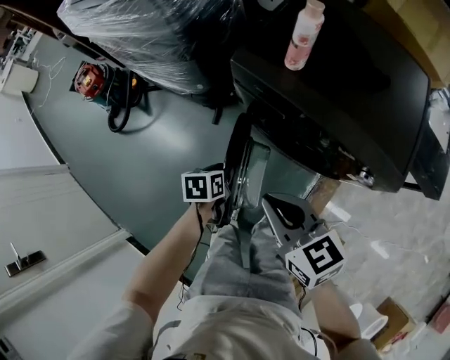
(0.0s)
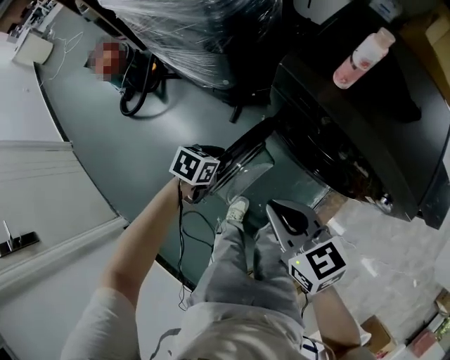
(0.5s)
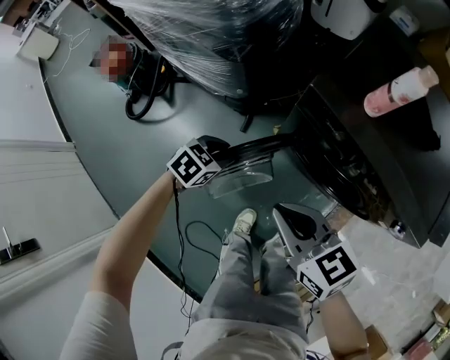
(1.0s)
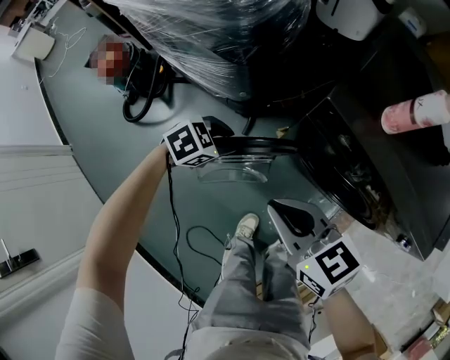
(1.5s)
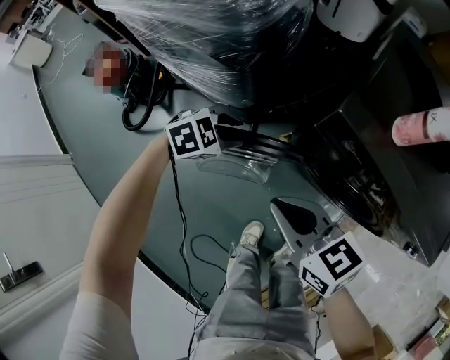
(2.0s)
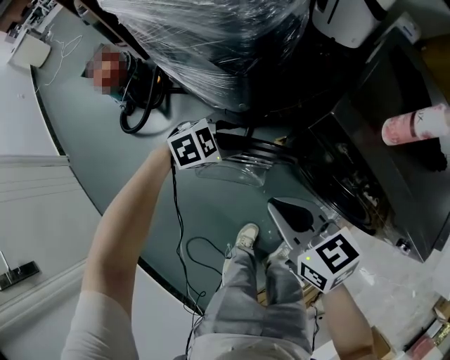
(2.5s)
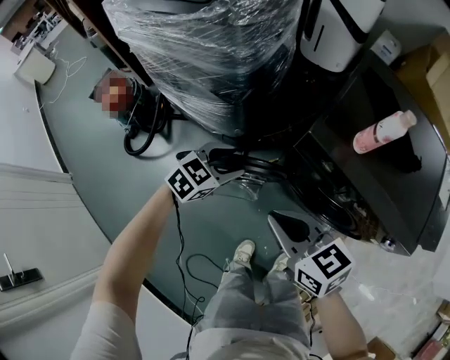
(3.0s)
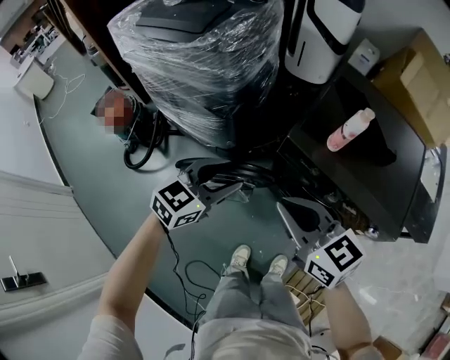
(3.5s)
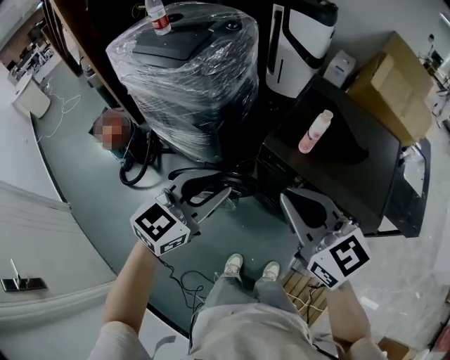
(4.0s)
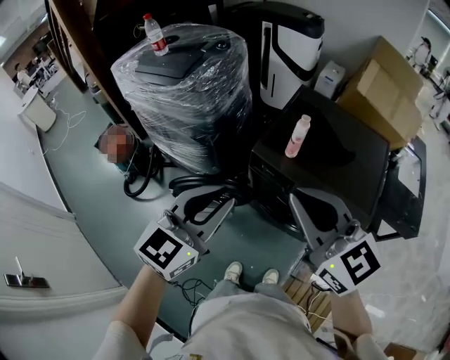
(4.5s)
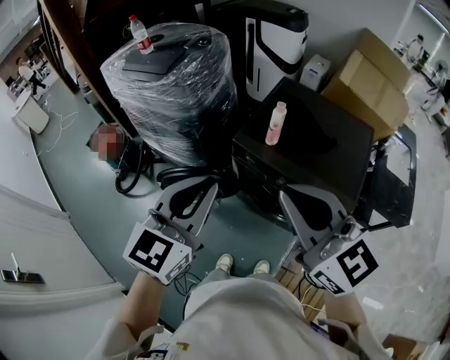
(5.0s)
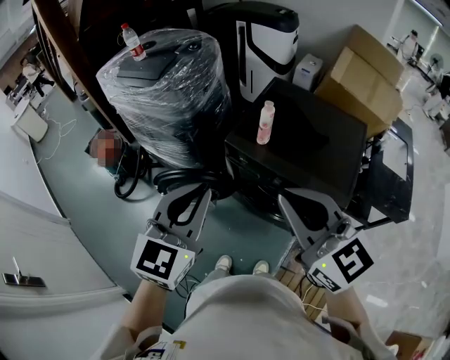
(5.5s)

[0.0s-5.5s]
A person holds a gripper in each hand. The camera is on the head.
0.0s to 2.0s: The left gripper moves some 25 cm, and rolls clockwise, seen from behind, by about 70 degrees, while the right gripper ends up approximately 25 cm from where it was.
2.0s to 3.5s: The two grippers go roughly 25 cm upward. The left gripper points its fingers some 30 degrees further upward.
3.5s to 5.5s: The right gripper travels upward, to the right and backward by approximately 30 cm, and rotates some 20 degrees; the left gripper goes about 35 cm upward, backward and to the right, turns by about 30 degrees, and closes up.

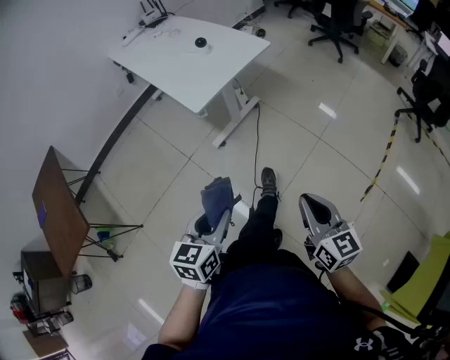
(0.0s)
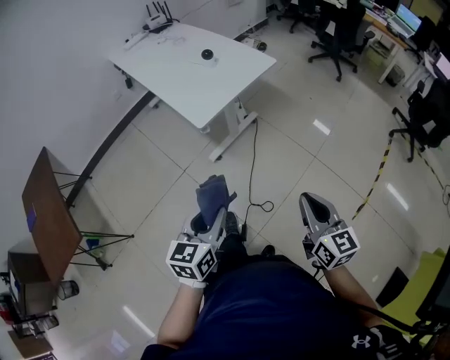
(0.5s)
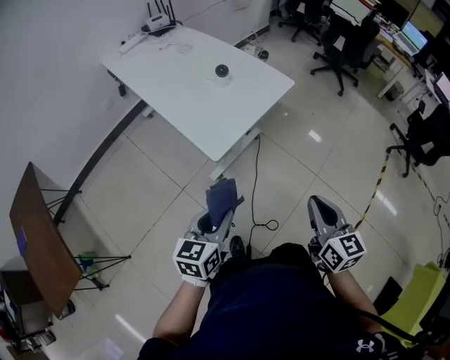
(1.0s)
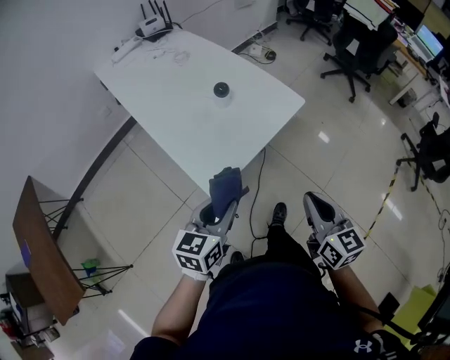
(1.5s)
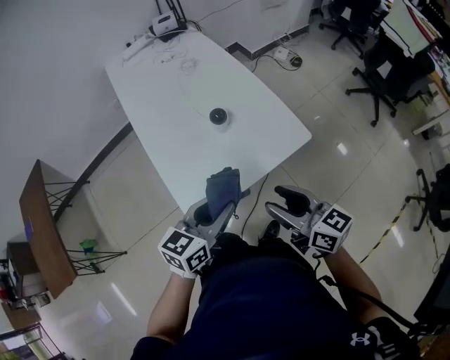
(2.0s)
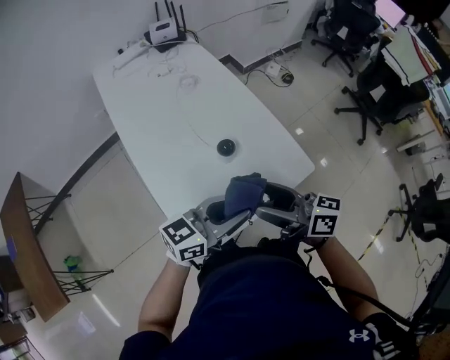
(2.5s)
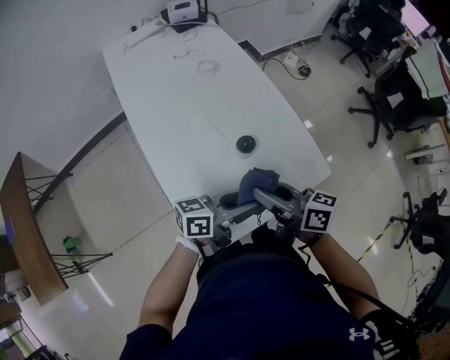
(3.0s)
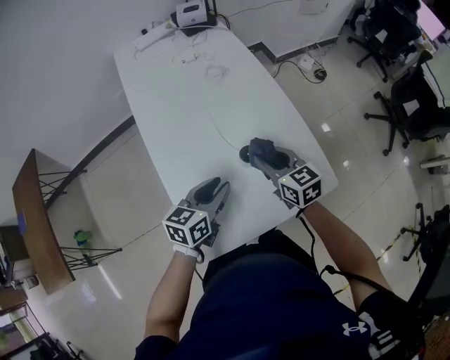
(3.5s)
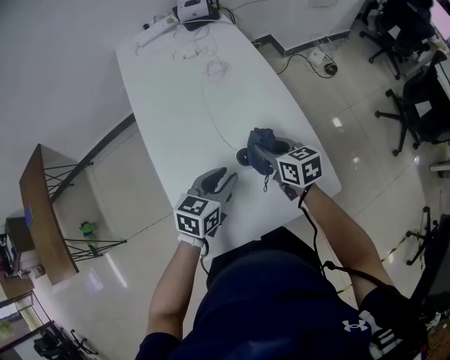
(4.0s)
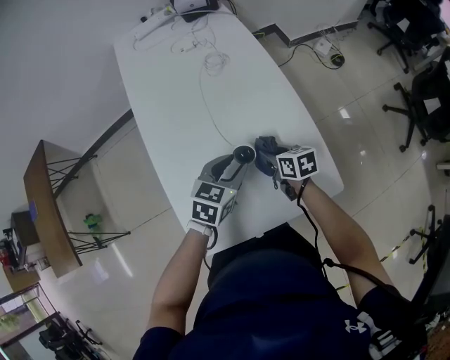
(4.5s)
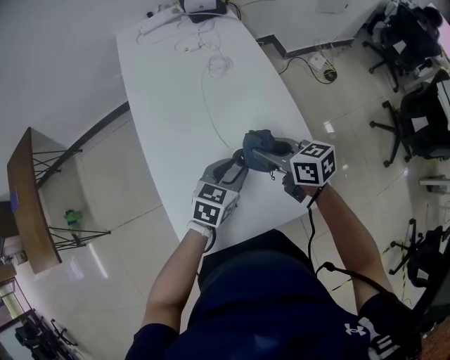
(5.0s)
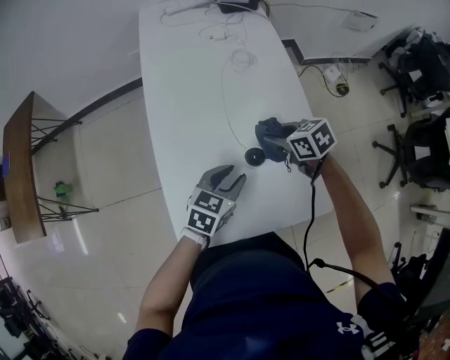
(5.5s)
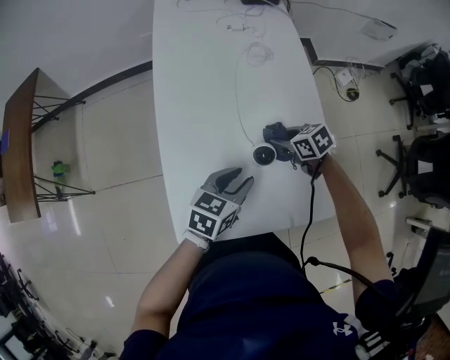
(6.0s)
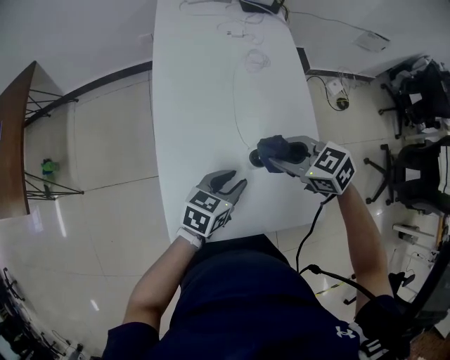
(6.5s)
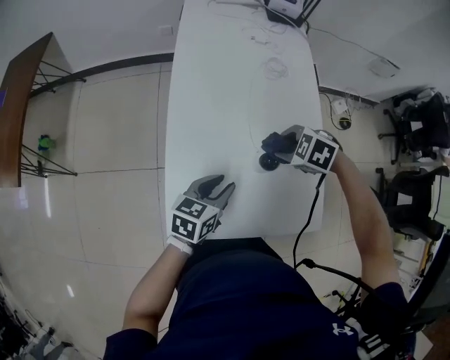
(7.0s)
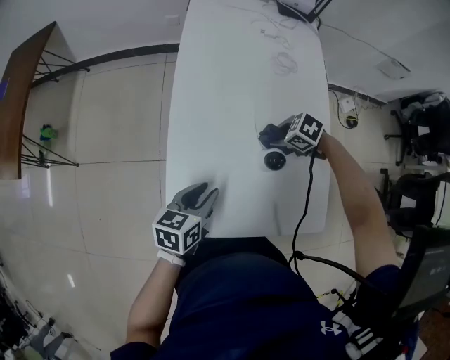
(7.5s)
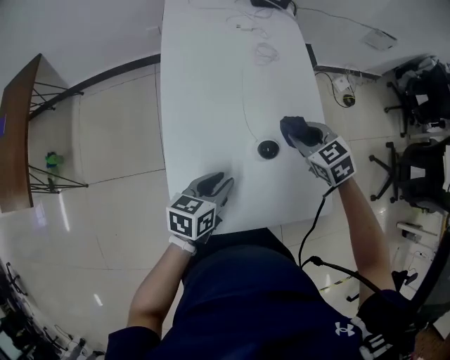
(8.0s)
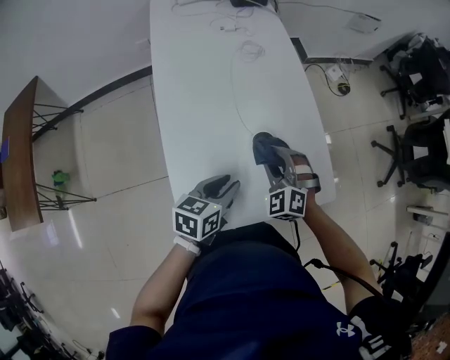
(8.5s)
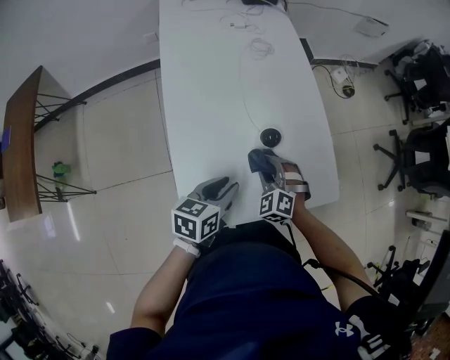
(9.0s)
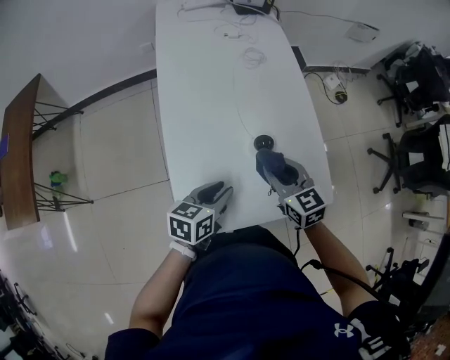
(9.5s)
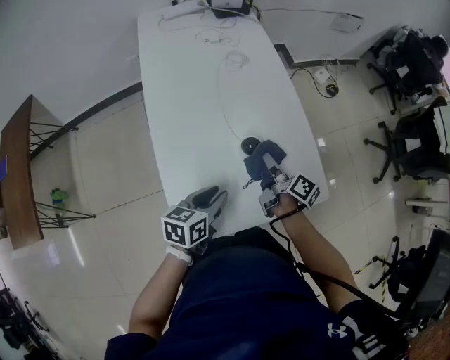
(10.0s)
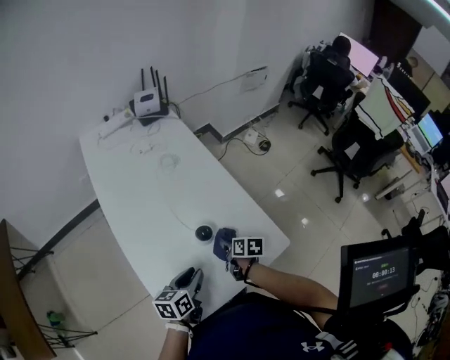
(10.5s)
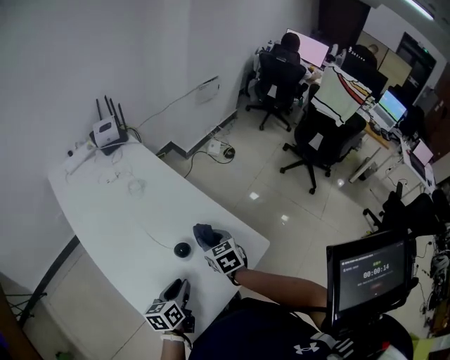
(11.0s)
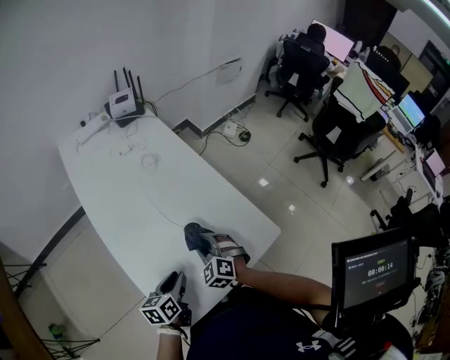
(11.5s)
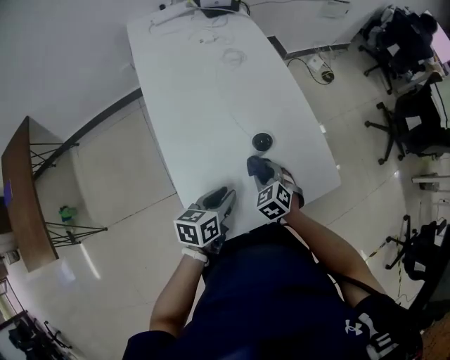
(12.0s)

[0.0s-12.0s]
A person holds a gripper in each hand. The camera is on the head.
0.0s to 2.0s: The two grippers travel together, forward, roughly 50 cm. The right gripper swivels approximately 40 degrees, and opens.
2.0s to 4.0s: The two grippers go about 30 cm forward and downward. The right gripper changes its angle by about 20 degrees, and opens, then closes again.
4.0s to 6.0s: The right gripper swings up and down, roughly 15 cm each way, with 2 reversals, and turns by some 40 degrees.
6.0s to 8.0s: The right gripper goes up and down, about 15 cm each way, reversing 2 times, and changes its angle by roughly 30 degrees.
8.0s to 10.0s: The right gripper moves backward and downward, about 10 cm, and twists approximately 80 degrees clockwise, seen from behind.
10.0s to 12.0s: The right gripper swings up and down, about 15 cm each way, with 2 reversals, and rotates around the line of its fingers by about 90 degrees, counterclockwise from behind.

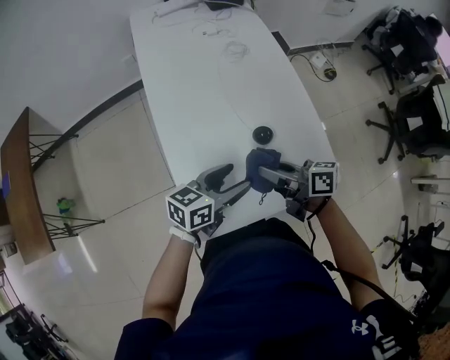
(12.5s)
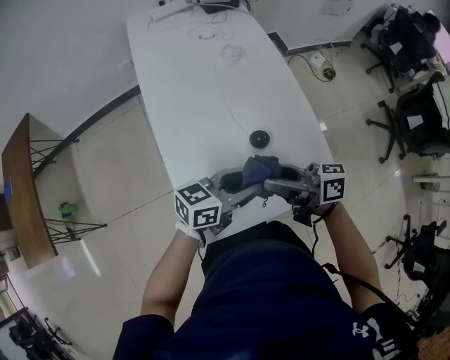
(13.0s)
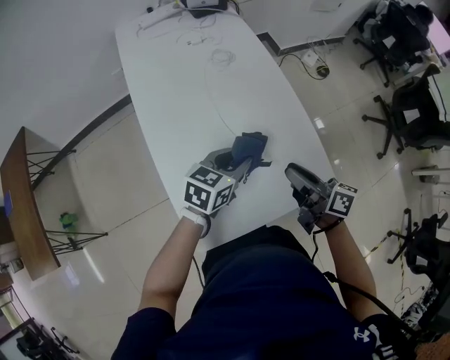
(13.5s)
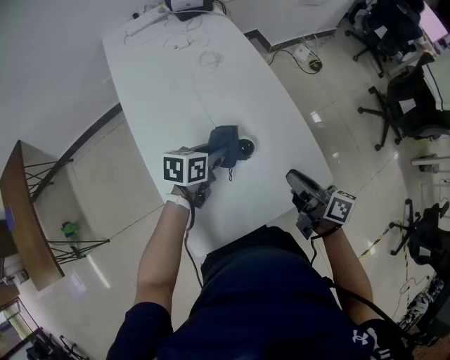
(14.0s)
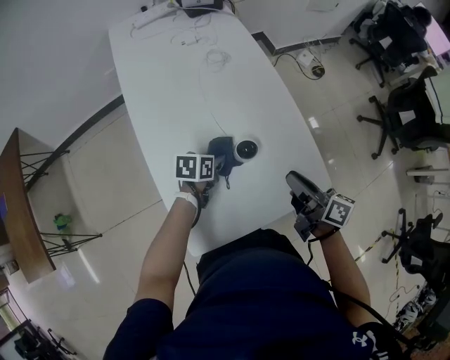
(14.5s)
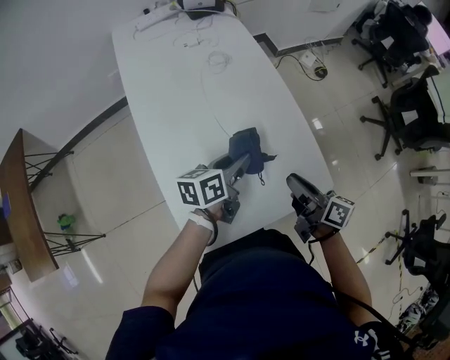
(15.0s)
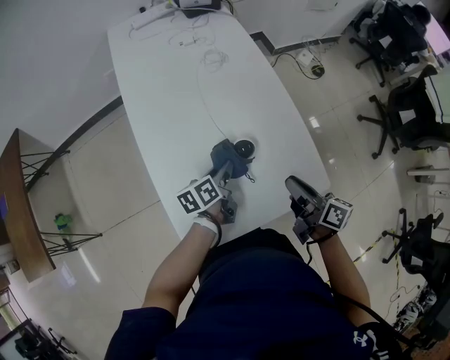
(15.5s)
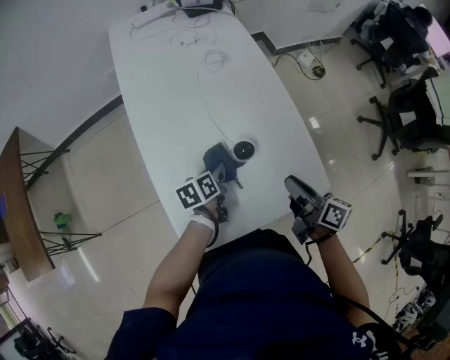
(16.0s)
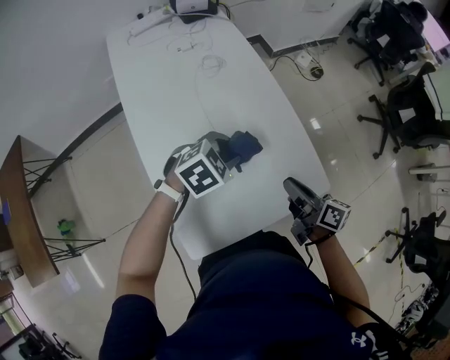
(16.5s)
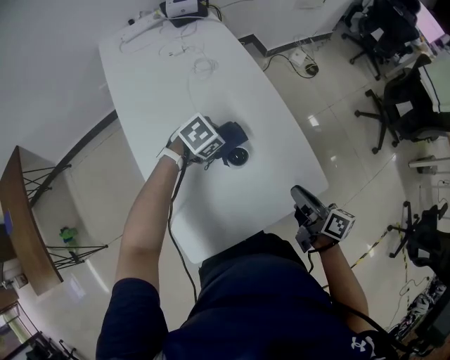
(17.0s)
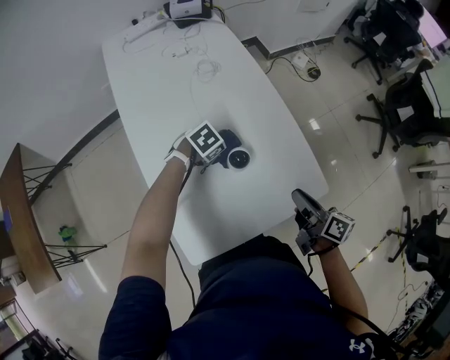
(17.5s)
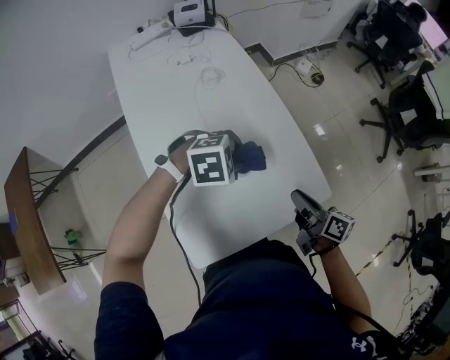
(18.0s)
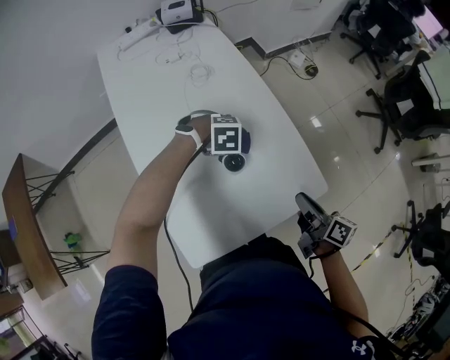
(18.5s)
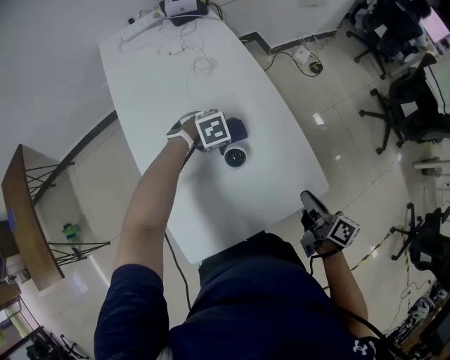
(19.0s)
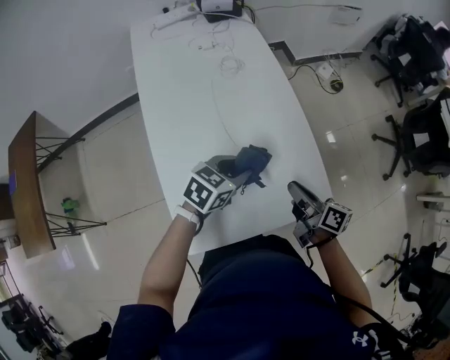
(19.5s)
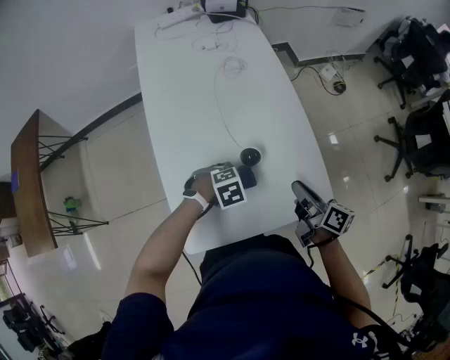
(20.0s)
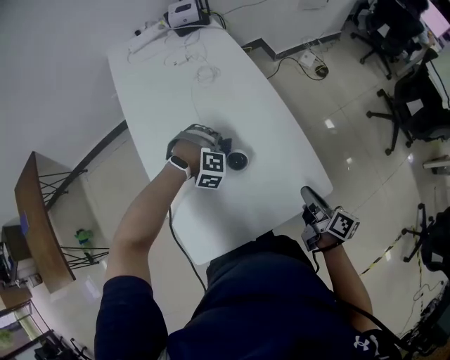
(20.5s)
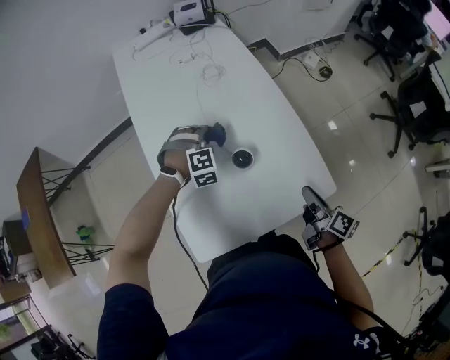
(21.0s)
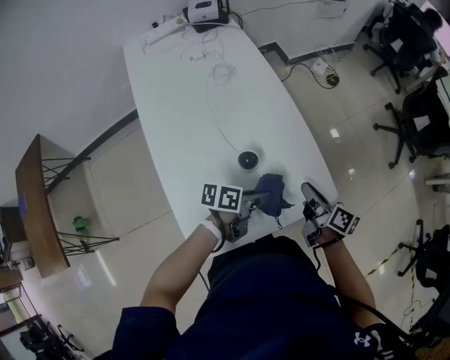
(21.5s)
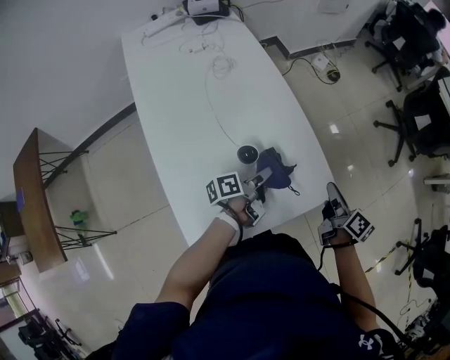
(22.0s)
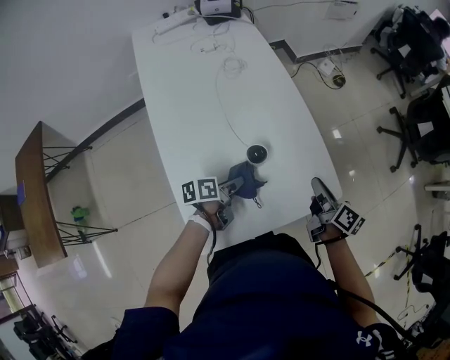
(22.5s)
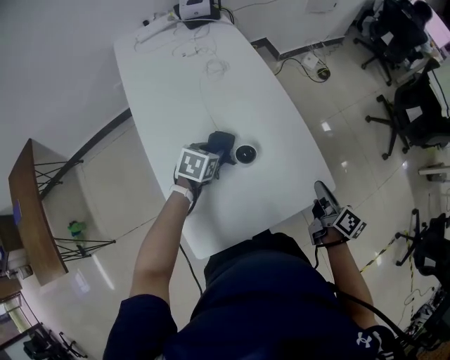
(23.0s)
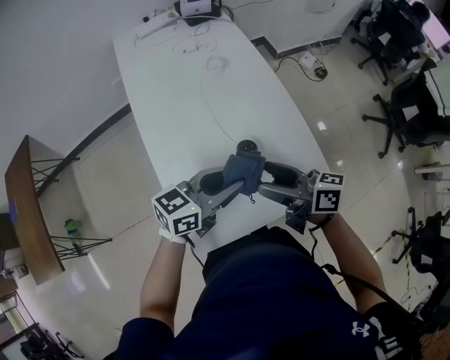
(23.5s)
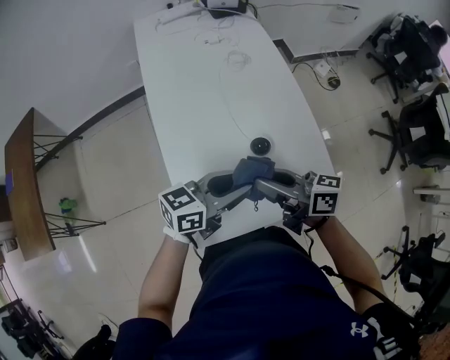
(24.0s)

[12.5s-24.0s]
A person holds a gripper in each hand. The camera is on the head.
12.5s to 14.5s: The left gripper goes some 15 cm downward, points its fingers about 30 degrees further downward, and closes up, while the right gripper moves roughly 15 cm, and turns by some 30 degrees.
14.5s to 16.5s: The left gripper goes up and down, some 10 cm each way, reversing 2 times, and twists roughly 60 degrees clockwise, seen from behind.
16.5s to 18.5s: The right gripper ends up roughly 10 cm from where it was. The left gripper swings up and down, approximately 15 cm each way, with 2 reversals, and rotates roughly 40 degrees.
18.5s to 20.0s: The left gripper travels upward and back again, some 10 cm each way, and turns by approximately 30 degrees; the right gripper ends up roughly 10 cm from where it was.
20.0s to 22.0s: The left gripper points its fingers roughly 60 degrees further upward, while the right gripper ends up roughly 15 cm from where it was, and changes its angle by roughly 20 degrees.
22.0s to 24.0s: The left gripper goes about 20 cm upward, to the left and backward, and rotates around the line of its fingers by about 50 degrees, clockwise from behind. The right gripper moves left and right over some 30 cm, changing direction 2 times, turns by roughly 60 degrees, and opens and closes again.
